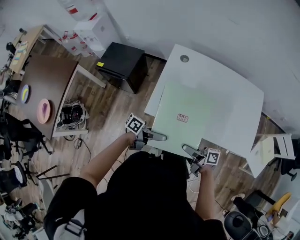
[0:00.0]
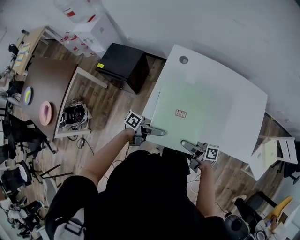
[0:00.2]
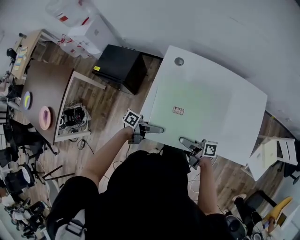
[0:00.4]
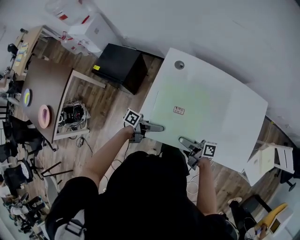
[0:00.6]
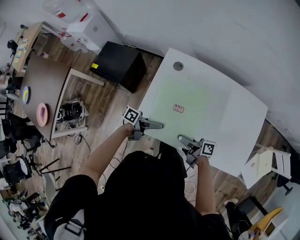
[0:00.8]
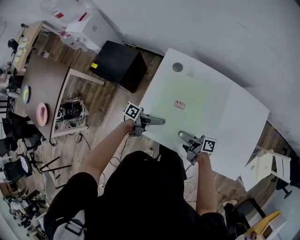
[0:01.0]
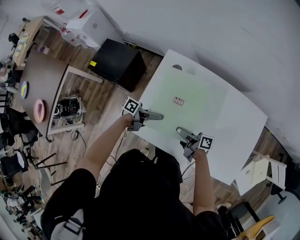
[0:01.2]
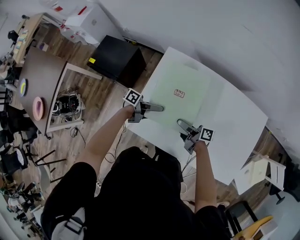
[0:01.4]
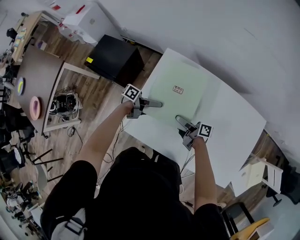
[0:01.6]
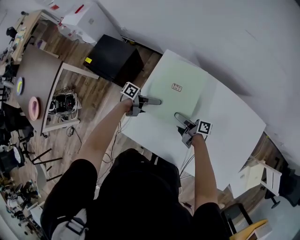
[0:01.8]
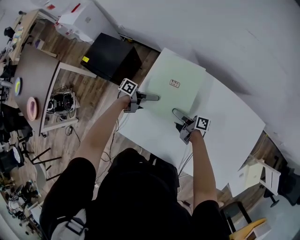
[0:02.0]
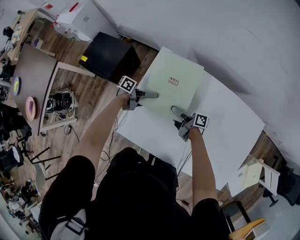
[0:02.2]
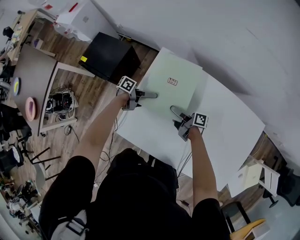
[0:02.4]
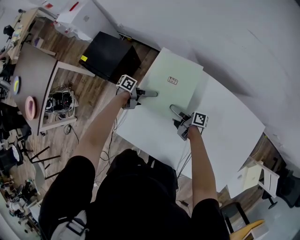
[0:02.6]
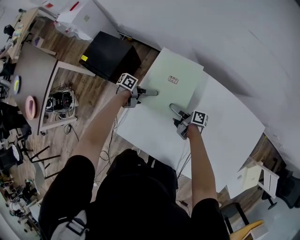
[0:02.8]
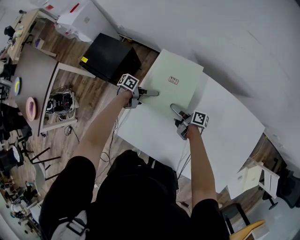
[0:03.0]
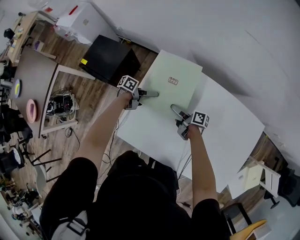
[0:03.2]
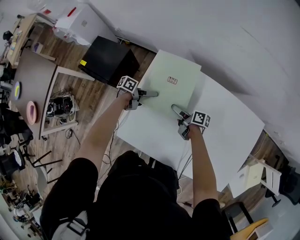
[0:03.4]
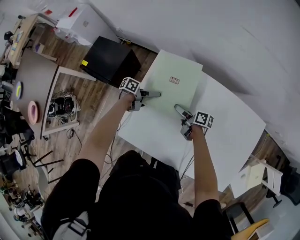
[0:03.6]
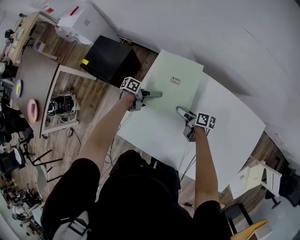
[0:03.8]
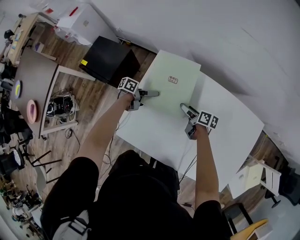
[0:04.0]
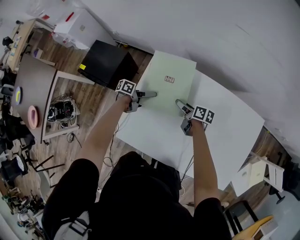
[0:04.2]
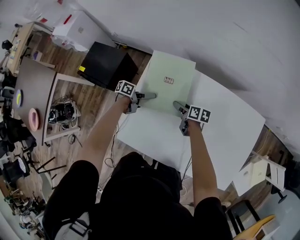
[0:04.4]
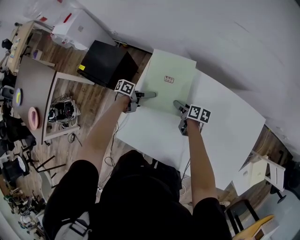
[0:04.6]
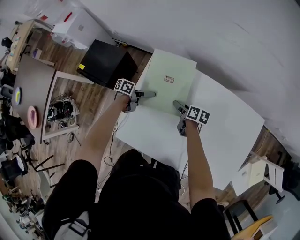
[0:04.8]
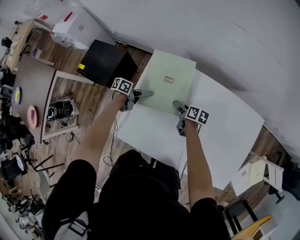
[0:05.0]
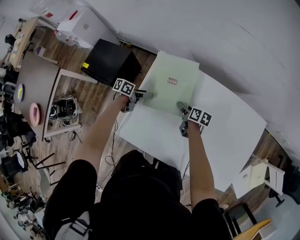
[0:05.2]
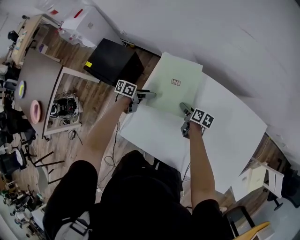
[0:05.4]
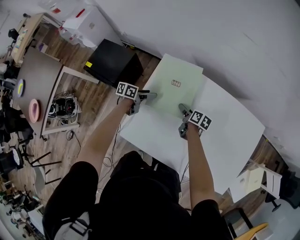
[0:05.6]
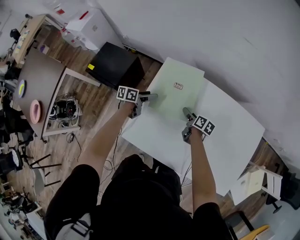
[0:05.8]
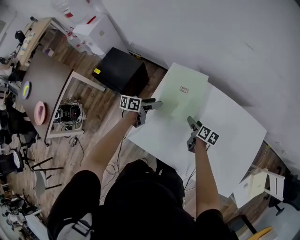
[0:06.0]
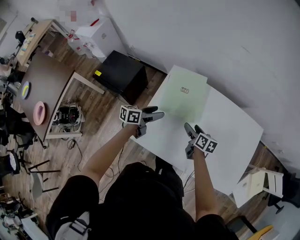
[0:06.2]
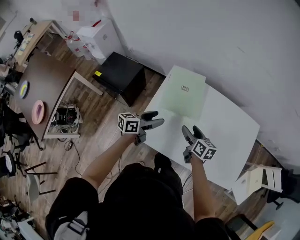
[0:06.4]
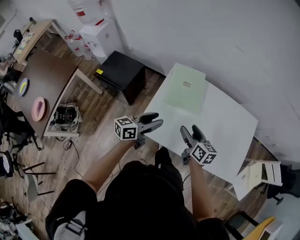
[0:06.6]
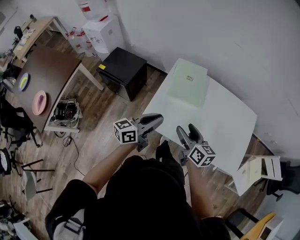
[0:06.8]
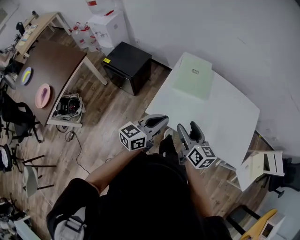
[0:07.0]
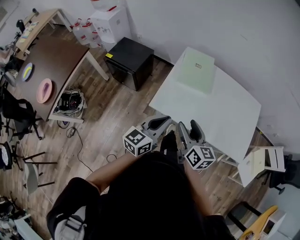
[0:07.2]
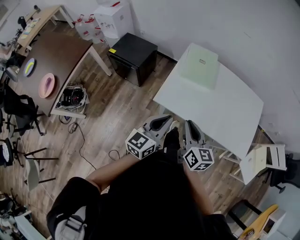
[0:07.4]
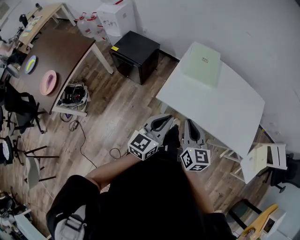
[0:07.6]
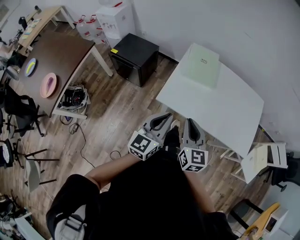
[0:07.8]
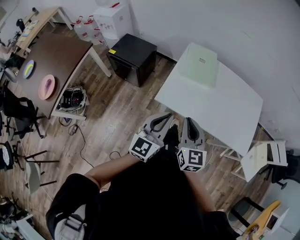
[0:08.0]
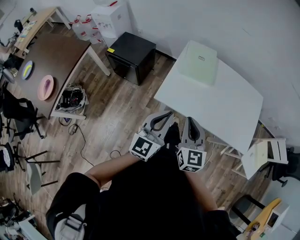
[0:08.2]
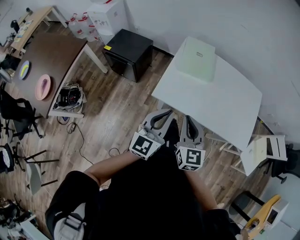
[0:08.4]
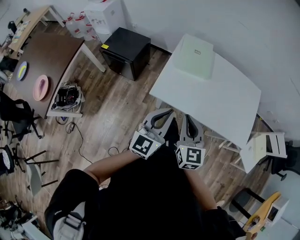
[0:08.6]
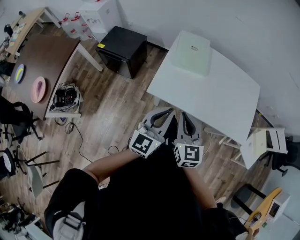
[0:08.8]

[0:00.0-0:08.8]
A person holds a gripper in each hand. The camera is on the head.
0:00.0 to 0:01.4: The right gripper shifts by some 30 cm.
0:01.4 to 0:03.0: The right gripper changes place by about 15 cm.
0:03.0 to 0:04.4: The right gripper ends up about 5 cm from where it was, and changes its angle by approximately 30 degrees.
0:05.8 to 0:07.4: The right gripper moves about 50 cm, turns by about 50 degrees, and closes its fingers.
0:07.4 to 0:08.8: The right gripper turns by some 20 degrees.

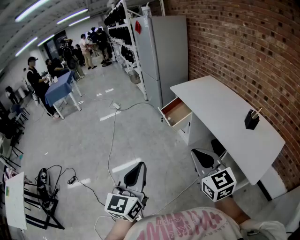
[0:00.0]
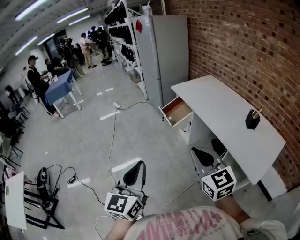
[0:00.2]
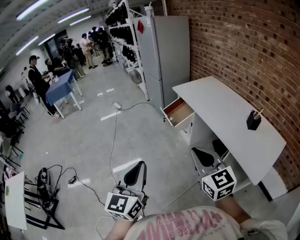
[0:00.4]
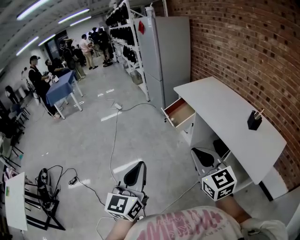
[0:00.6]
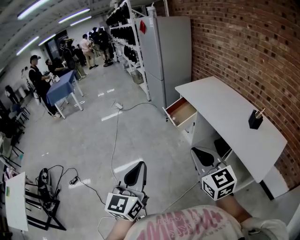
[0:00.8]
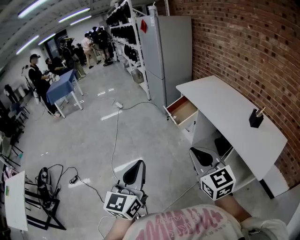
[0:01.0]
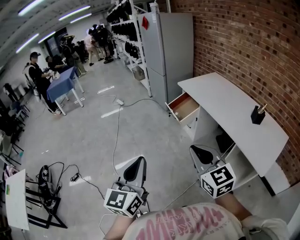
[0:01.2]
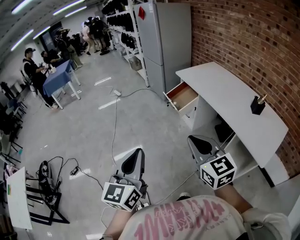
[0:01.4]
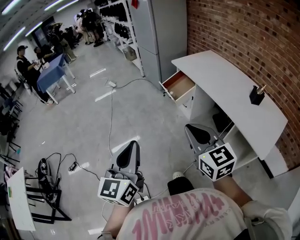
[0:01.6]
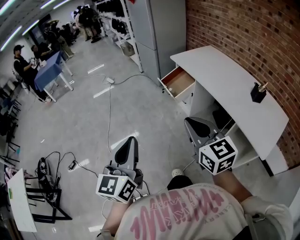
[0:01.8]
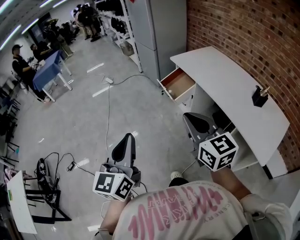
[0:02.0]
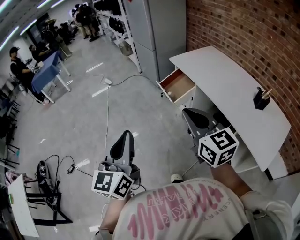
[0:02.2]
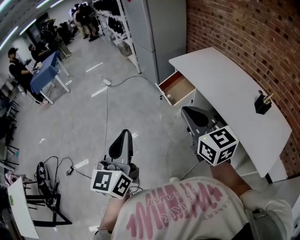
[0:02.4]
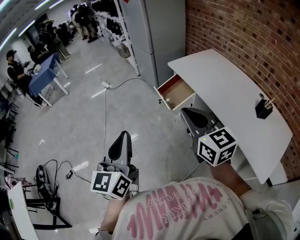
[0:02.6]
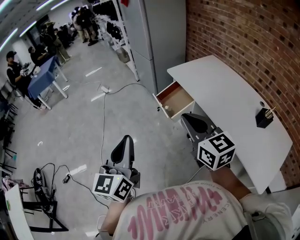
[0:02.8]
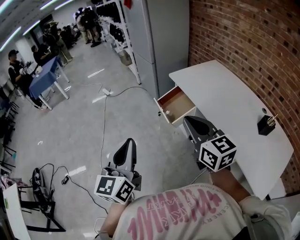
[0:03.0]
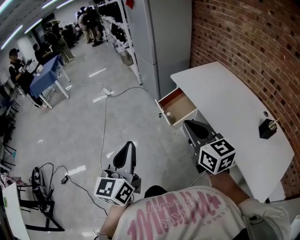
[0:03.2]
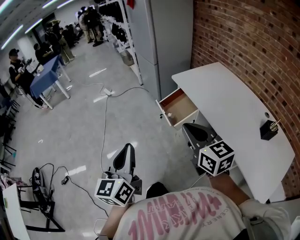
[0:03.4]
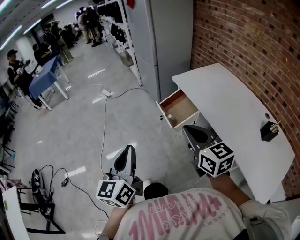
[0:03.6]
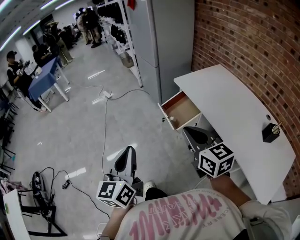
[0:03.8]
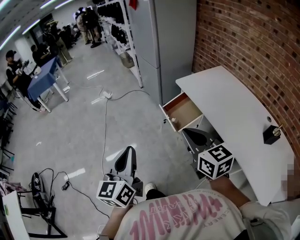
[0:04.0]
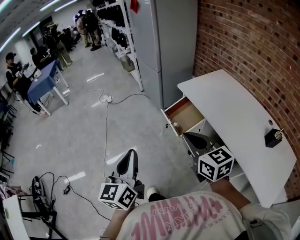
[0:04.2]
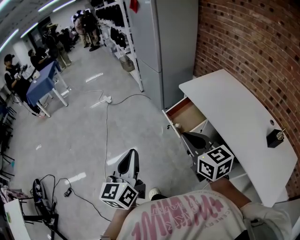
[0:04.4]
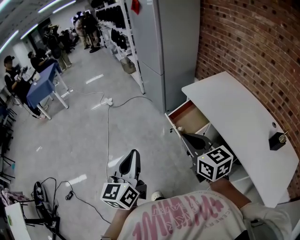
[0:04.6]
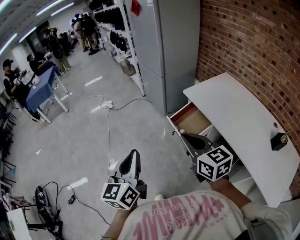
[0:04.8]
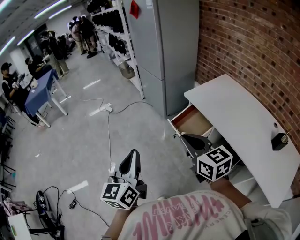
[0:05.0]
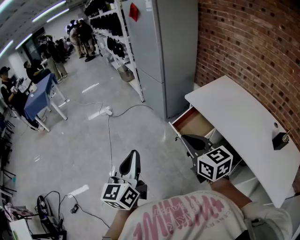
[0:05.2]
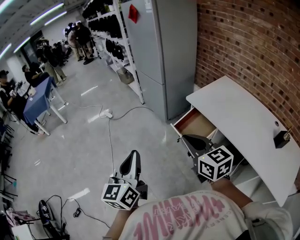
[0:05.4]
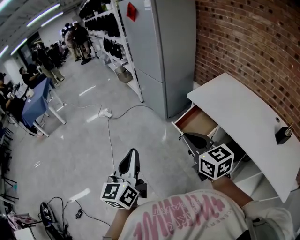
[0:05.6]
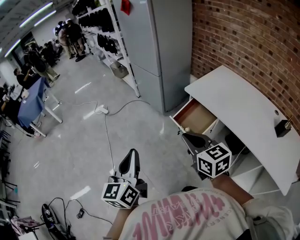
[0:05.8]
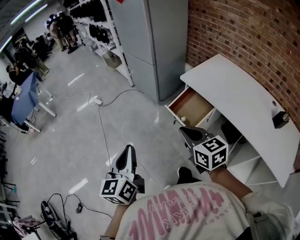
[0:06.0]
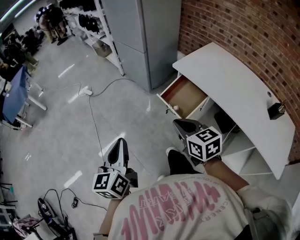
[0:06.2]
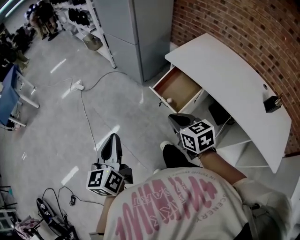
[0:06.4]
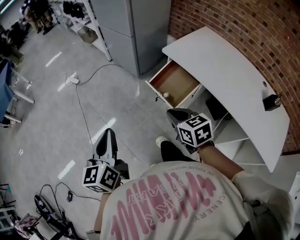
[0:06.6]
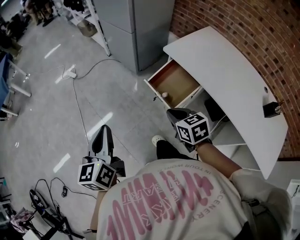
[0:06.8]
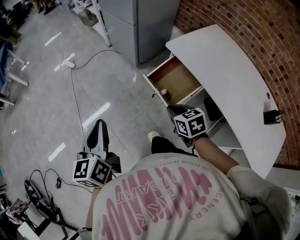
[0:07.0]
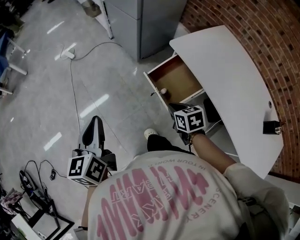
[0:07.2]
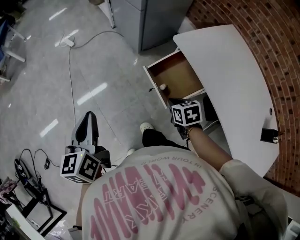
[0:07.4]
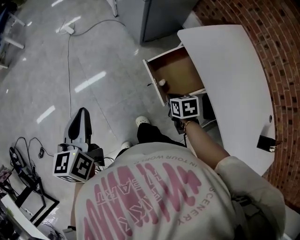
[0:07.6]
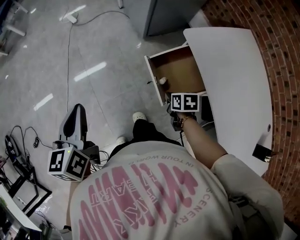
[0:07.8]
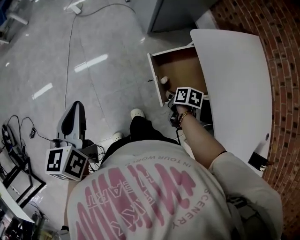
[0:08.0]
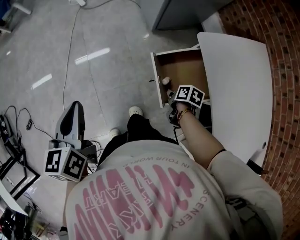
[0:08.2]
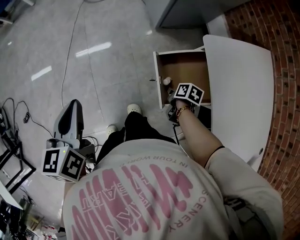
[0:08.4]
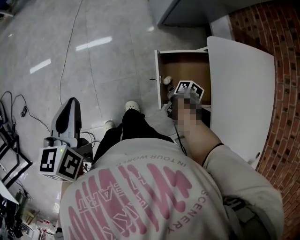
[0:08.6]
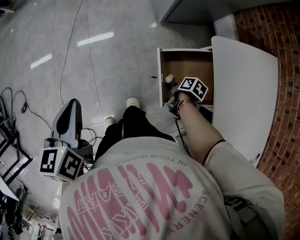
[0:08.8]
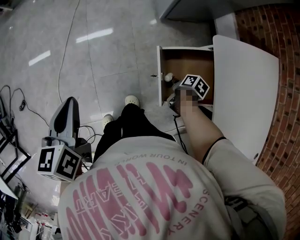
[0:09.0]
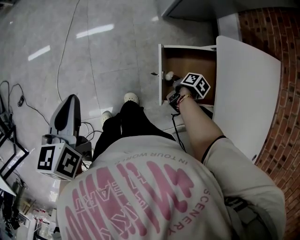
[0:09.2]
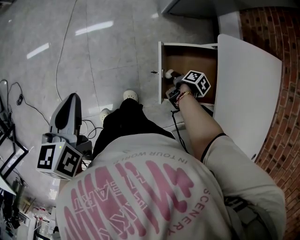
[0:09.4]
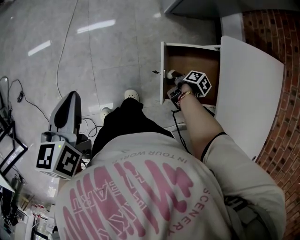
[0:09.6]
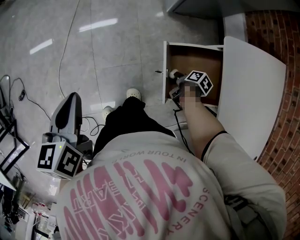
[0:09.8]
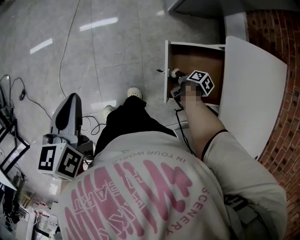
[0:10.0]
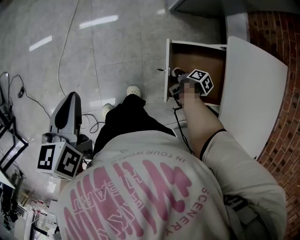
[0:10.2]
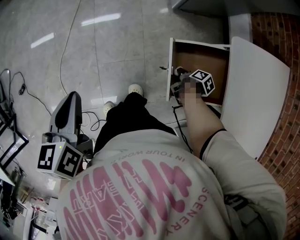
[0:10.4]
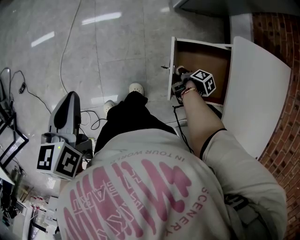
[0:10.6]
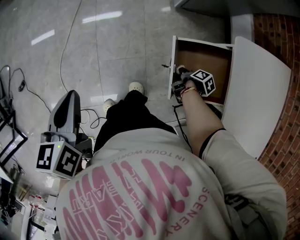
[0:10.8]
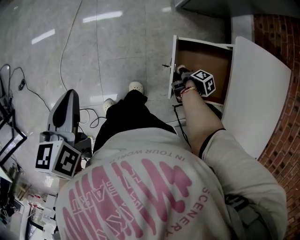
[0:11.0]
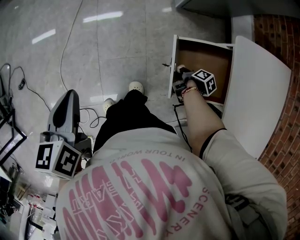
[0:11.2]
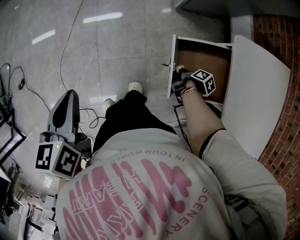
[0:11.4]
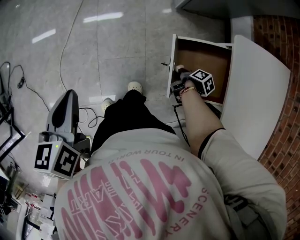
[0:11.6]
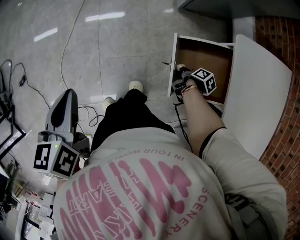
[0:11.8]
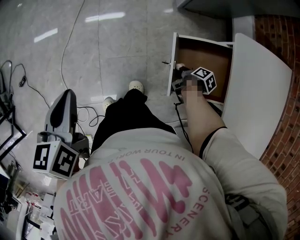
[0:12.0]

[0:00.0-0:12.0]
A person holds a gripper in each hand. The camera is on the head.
0:00.0 to 0:01.6: The grippers both shift to the left by roughly 10 cm.
0:01.6 to 0:03.0: The grippers both shift forward by some 30 cm.
0:03.0 to 0:04.4: Both grippers travel together forward and to the left, some 15 cm.
0:04.4 to 0:06.0: The right gripper is displaced forward, to the left and downward by about 15 cm. Meanwhile the left gripper travels forward and to the left by approximately 20 cm.
0:06.0 to 0:07.6: The left gripper travels forward and downward by about 20 cm, and rotates some 20 degrees. Meanwhile the right gripper shifts some 40 cm downward, forward and to the right, and points its fingers about 40 degrees further downward.
0:07.6 to 0:09.0: The left gripper shifts some 10 cm downward. The right gripper is displaced downward, forward and to the right by roughly 20 cm, and swivels approximately 40 degrees.
0:09.0 to 0:10.4: The right gripper opens up.
0:10.4 to 0:12.0: The right gripper closes.

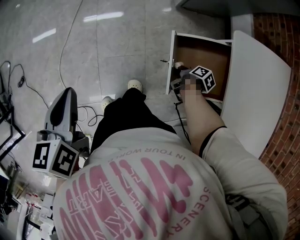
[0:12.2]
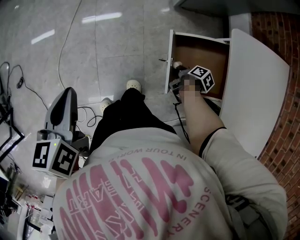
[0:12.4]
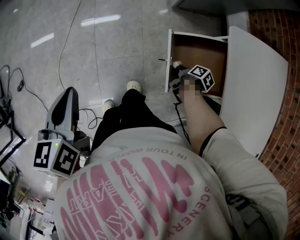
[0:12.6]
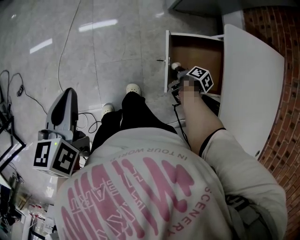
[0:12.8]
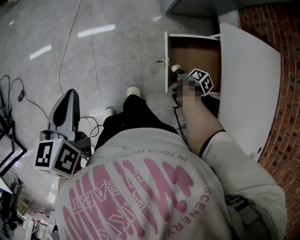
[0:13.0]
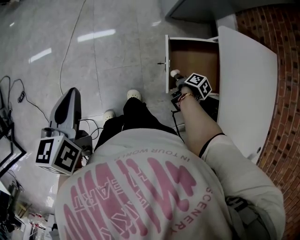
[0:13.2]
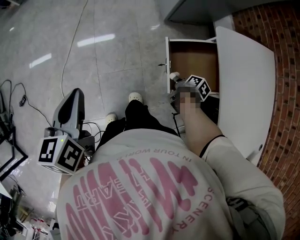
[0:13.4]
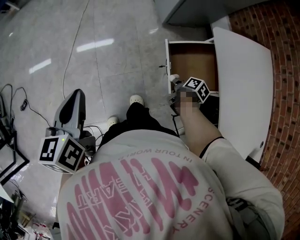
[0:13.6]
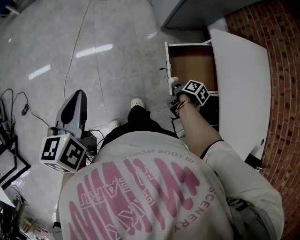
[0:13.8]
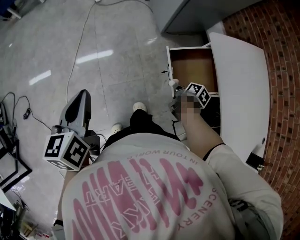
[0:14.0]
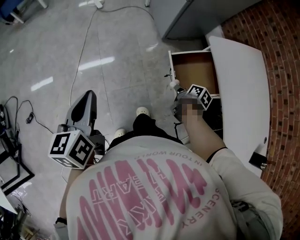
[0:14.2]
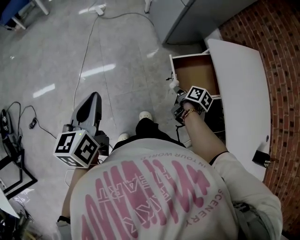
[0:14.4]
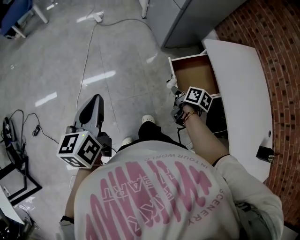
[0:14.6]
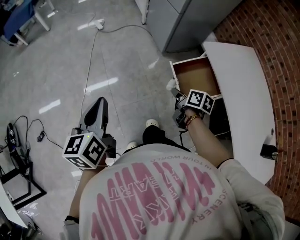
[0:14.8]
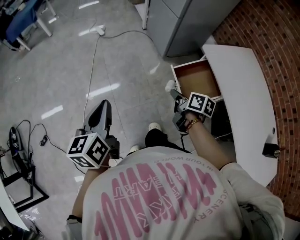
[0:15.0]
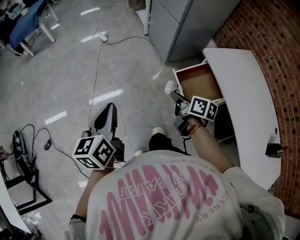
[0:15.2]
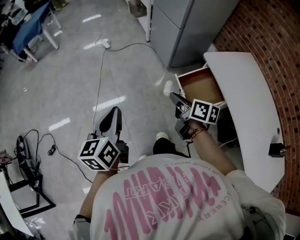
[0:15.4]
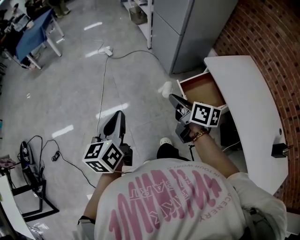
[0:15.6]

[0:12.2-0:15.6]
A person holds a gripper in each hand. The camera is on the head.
0:12.2 to 0:13.8: The left gripper moves upward and to the left, approximately 10 cm. The right gripper is displaced upward, to the left and backward by about 15 cm.
0:13.8 to 0:15.6: The left gripper is displaced upward and backward by approximately 10 cm. The right gripper is displaced upward and to the left by approximately 40 cm, and points its fingers some 40 degrees further upward.
